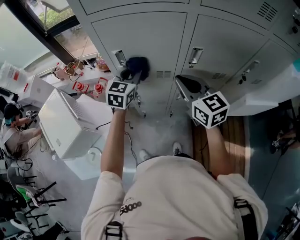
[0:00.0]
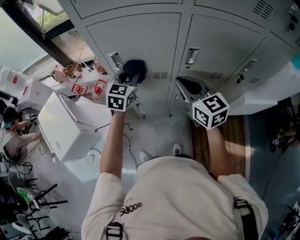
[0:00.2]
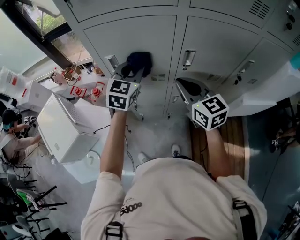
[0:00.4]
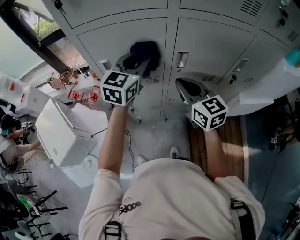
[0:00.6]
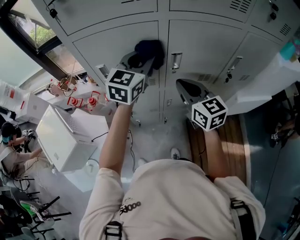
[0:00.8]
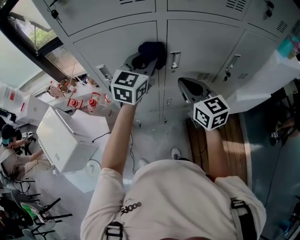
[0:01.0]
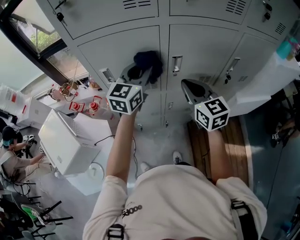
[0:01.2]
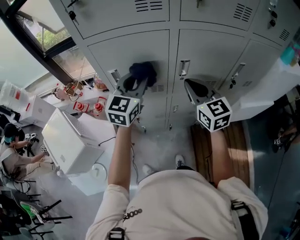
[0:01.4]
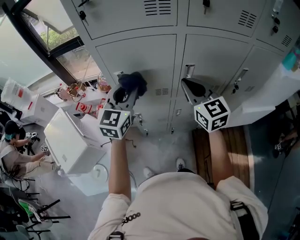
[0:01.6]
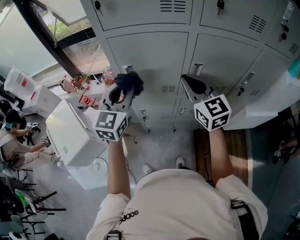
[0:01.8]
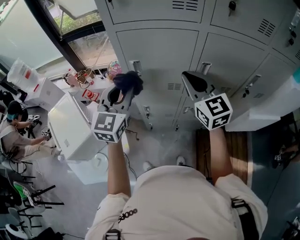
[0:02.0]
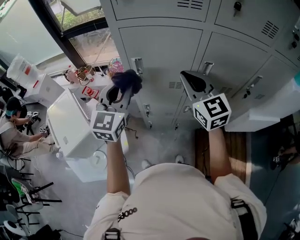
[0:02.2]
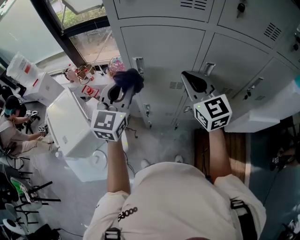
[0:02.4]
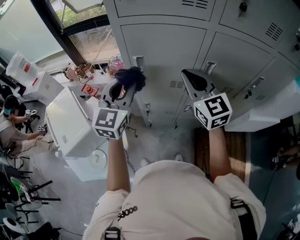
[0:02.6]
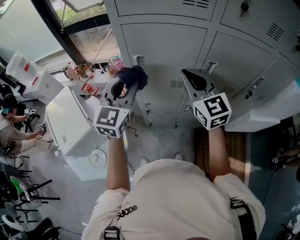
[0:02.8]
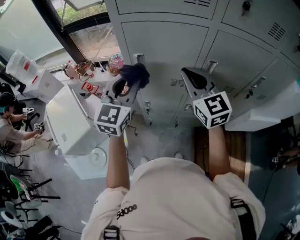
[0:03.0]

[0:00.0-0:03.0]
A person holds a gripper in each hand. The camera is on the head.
0:00.0 to 0:01.6: The right gripper moves upward, approximately 5 cm. Meanwhile the left gripper moves upward and backward, some 15 cm, and moves about 15 cm to the right and comes back.
0:01.6 to 0:03.0: The two grippers go approximately 5 cm to the left.

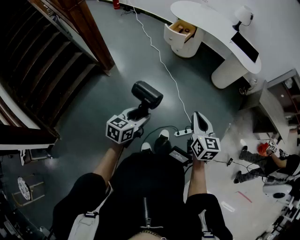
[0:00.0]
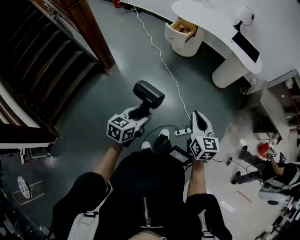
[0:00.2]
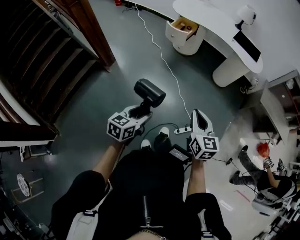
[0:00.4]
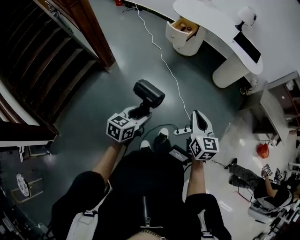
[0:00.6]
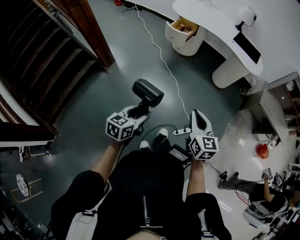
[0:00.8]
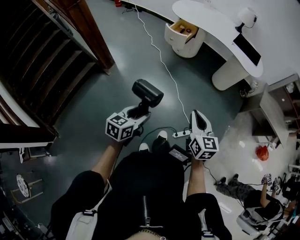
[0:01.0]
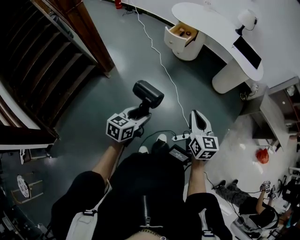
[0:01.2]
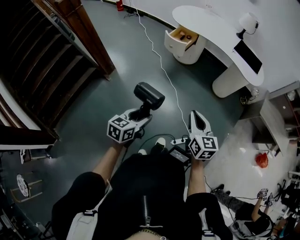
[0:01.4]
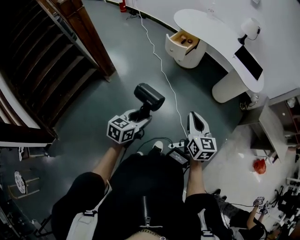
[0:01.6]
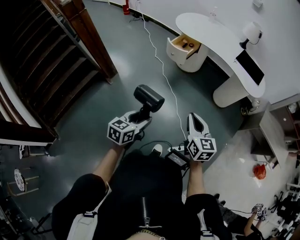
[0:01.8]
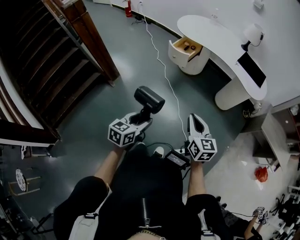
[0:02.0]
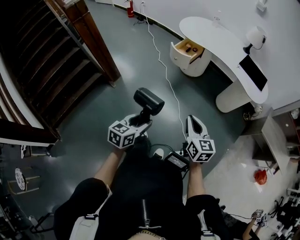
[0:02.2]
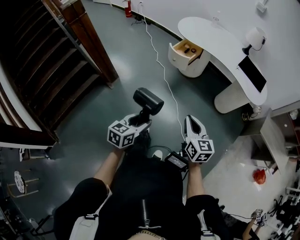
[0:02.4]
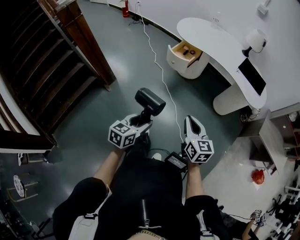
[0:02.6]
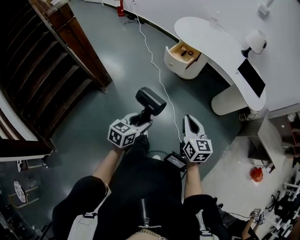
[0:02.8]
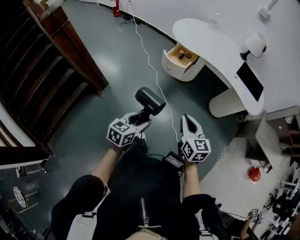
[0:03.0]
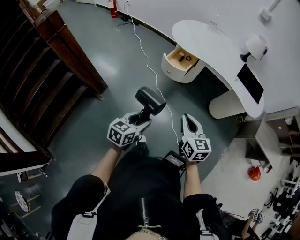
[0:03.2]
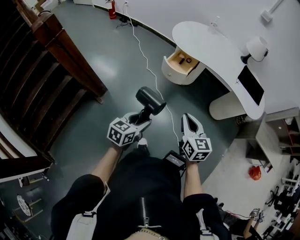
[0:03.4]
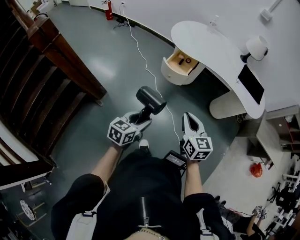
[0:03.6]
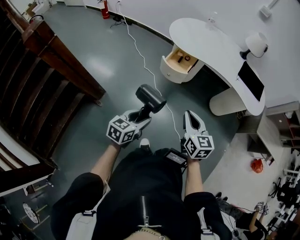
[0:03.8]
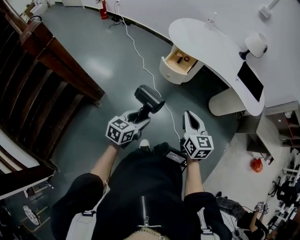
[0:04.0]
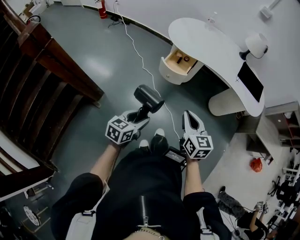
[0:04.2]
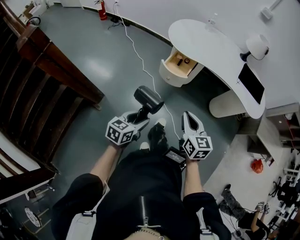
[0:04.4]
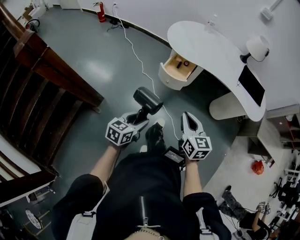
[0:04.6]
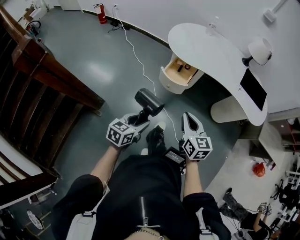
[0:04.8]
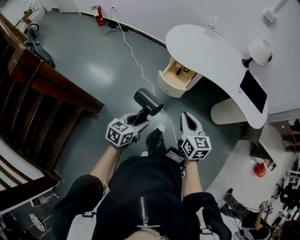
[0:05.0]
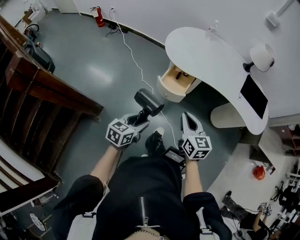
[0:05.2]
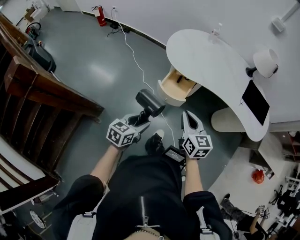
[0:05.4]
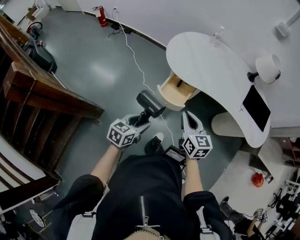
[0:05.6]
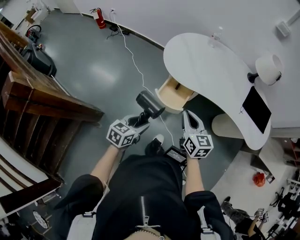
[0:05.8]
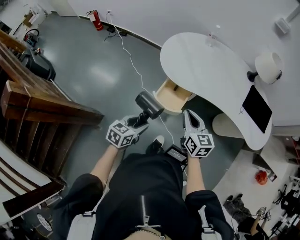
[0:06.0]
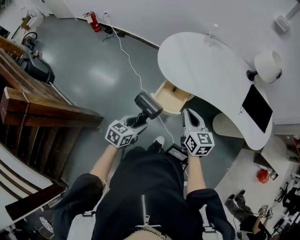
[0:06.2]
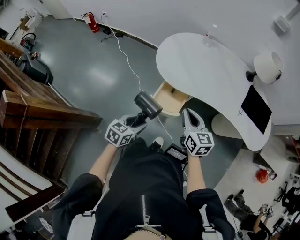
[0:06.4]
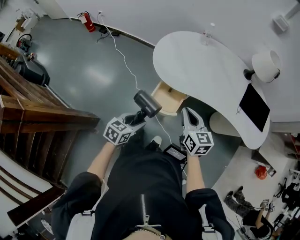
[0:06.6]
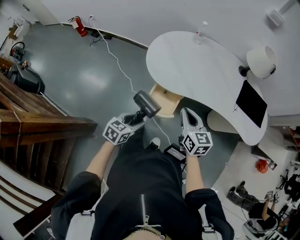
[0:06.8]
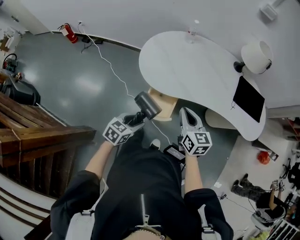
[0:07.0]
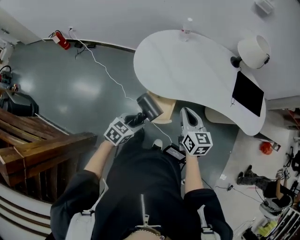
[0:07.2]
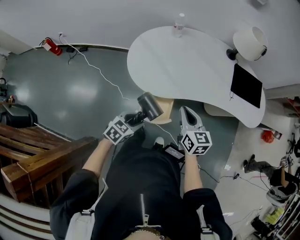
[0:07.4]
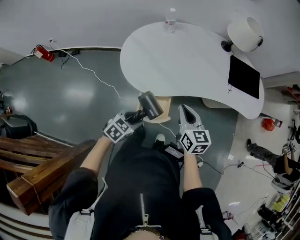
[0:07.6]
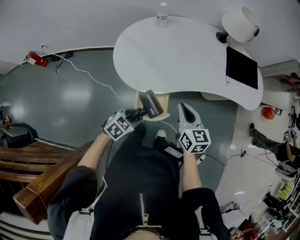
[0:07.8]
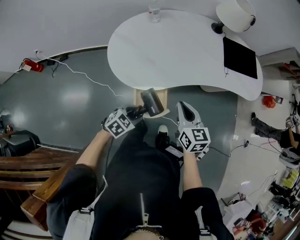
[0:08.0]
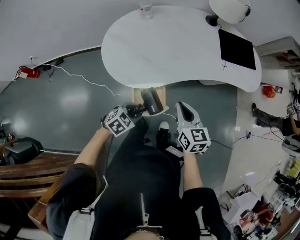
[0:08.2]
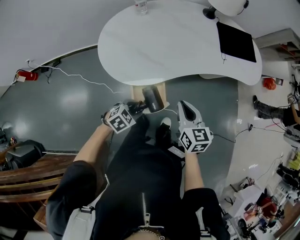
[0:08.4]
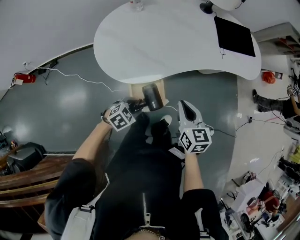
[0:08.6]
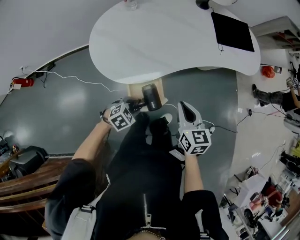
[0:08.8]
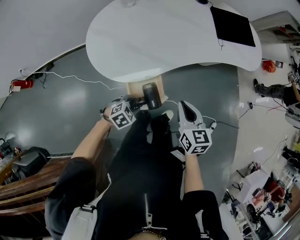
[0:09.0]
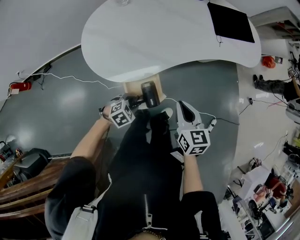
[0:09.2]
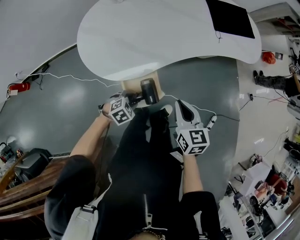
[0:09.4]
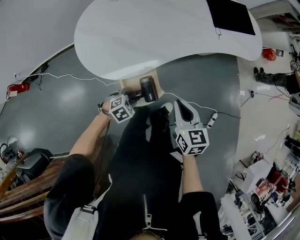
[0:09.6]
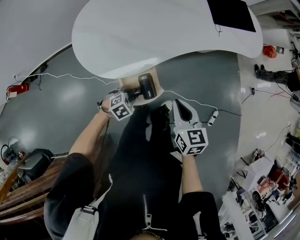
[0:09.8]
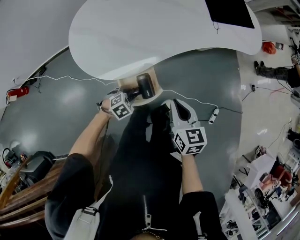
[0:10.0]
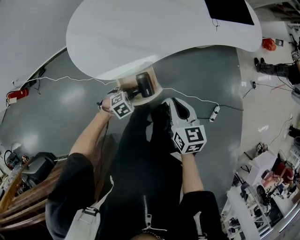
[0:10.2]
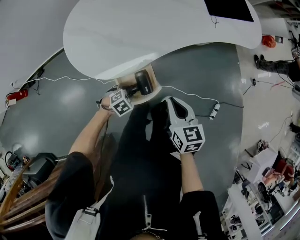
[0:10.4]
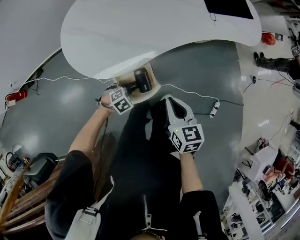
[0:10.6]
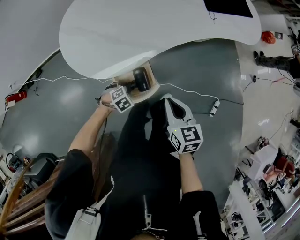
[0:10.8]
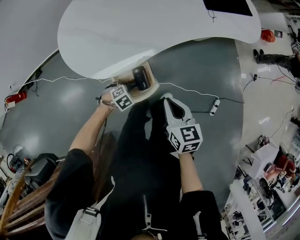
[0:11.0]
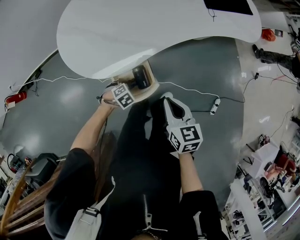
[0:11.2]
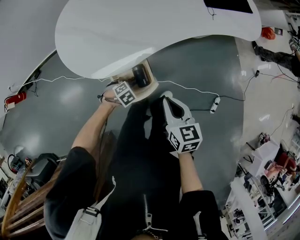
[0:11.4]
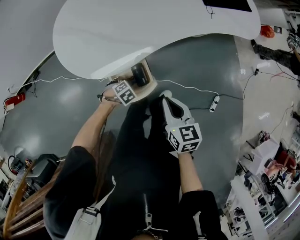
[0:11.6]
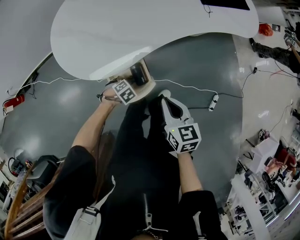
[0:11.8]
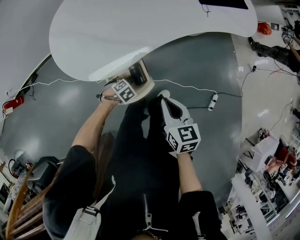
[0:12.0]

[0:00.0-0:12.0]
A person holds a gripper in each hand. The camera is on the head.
0:00.0 to 0:01.6: The two grippers go about 10 cm forward.
0:01.6 to 0:03.0: The left gripper moves forward, about 20 cm, while the right gripper travels forward and to the left by roughly 20 cm.
0:03.0 to 0:04.4: The two grippers go roughly 15 cm forward and to the left.
0:04.4 to 0:06.0: Both grippers move forward, about 30 cm.
0:06.0 to 0:07.6: The right gripper moves roughly 15 cm, and changes its angle by roughly 20 degrees. The left gripper changes place by approximately 20 cm, and changes its angle by some 40 degrees.
0:07.6 to 0:09.0: The right gripper ends up some 10 cm from where it was, and rotates roughly 20 degrees. The left gripper heads downward, covering roughly 10 cm, and rotates about 40 degrees.
0:09.0 to 0:10.4: The left gripper moves downward, about 10 cm, while the right gripper ends up about 5 cm from where it was.
0:10.4 to 0:12.0: The left gripper goes about 5 cm downward.

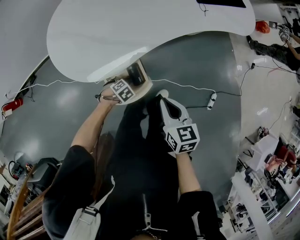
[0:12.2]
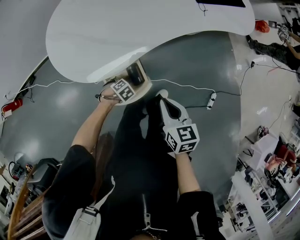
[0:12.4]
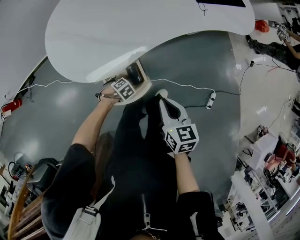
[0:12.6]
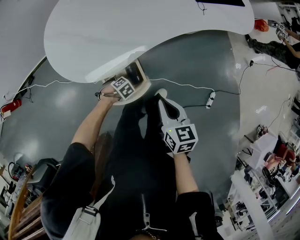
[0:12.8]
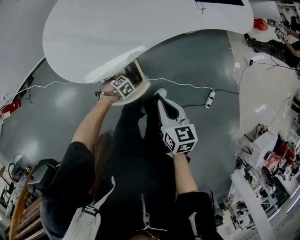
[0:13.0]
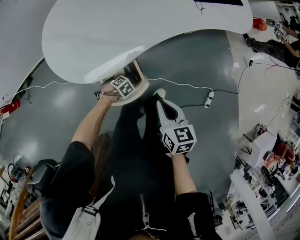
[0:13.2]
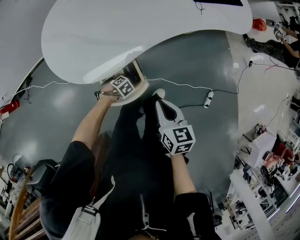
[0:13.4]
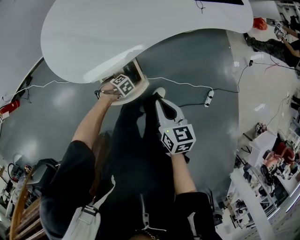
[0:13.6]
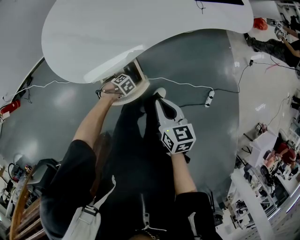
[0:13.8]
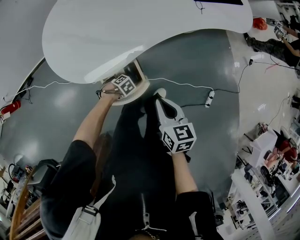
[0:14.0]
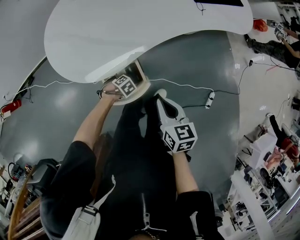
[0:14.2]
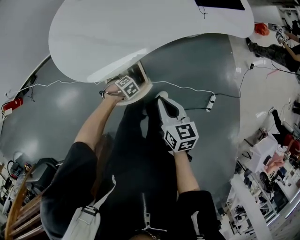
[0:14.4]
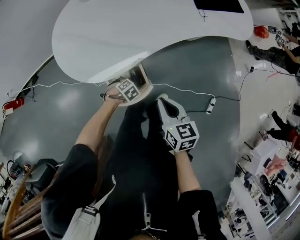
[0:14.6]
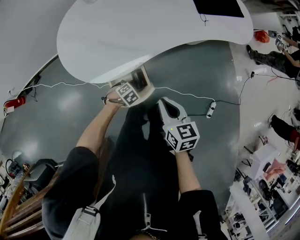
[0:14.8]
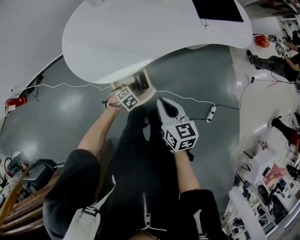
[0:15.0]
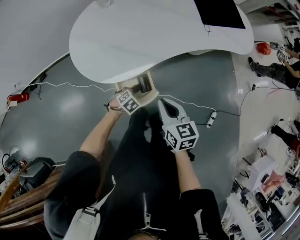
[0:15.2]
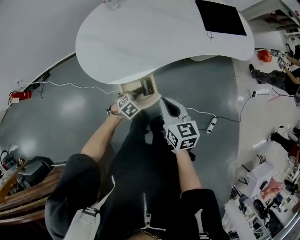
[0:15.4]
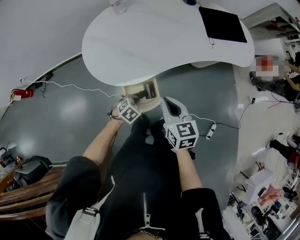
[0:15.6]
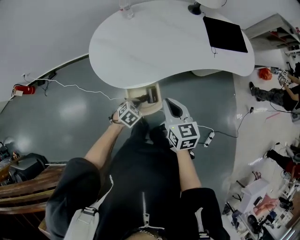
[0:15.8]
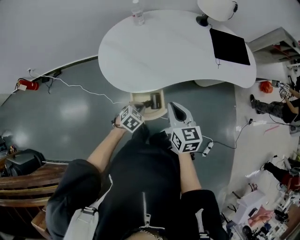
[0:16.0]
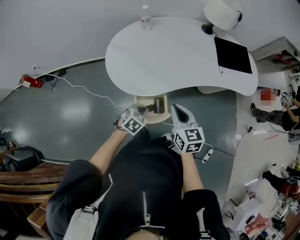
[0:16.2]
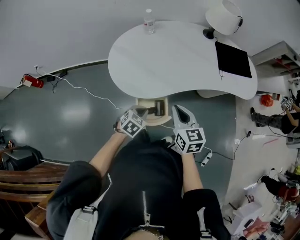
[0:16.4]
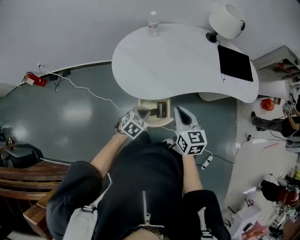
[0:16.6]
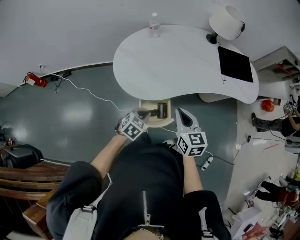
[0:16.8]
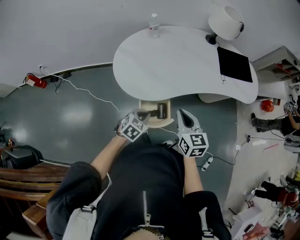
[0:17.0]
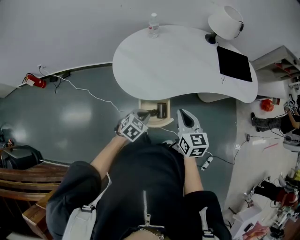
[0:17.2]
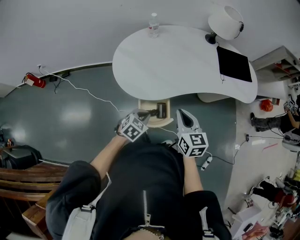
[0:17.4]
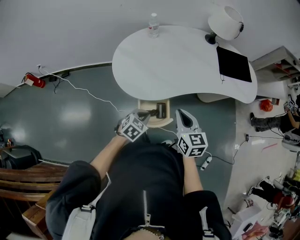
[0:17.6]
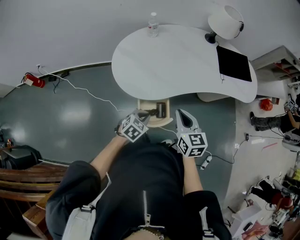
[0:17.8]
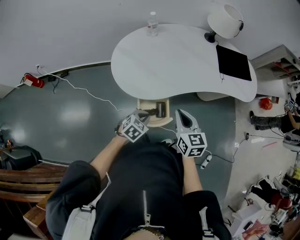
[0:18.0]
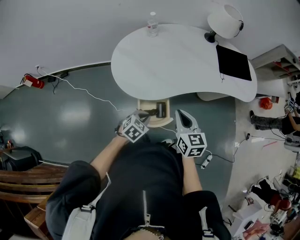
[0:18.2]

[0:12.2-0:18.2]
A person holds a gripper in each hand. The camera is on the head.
0:12.2 to 0:13.8: There are only small adjustments of the grippers.
0:13.8 to 0:15.2: The right gripper travels upward by about 5 cm. The left gripper moves upward, roughly 10 cm, rotates about 20 degrees, and closes up.
0:15.2 to 0:16.6: The right gripper heads upward, covering about 5 cm. The left gripper shifts about 20 cm upward, and turns by some 30 degrees.
0:16.6 to 0:18.2: There are only small adjustments of the grippers.

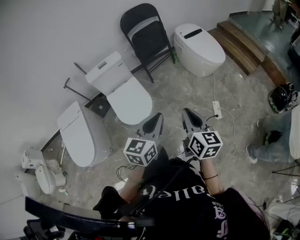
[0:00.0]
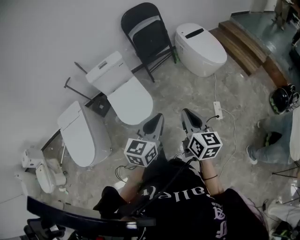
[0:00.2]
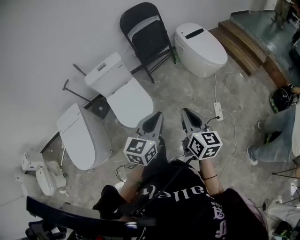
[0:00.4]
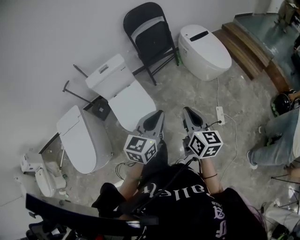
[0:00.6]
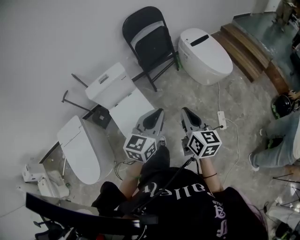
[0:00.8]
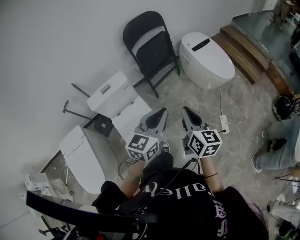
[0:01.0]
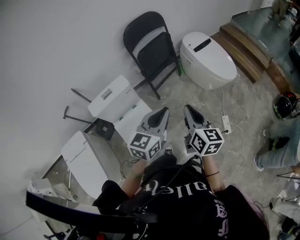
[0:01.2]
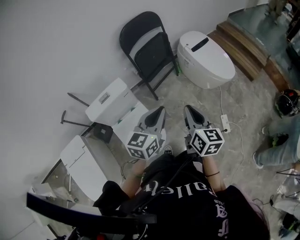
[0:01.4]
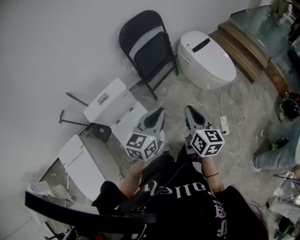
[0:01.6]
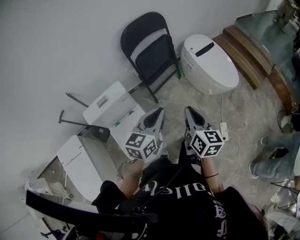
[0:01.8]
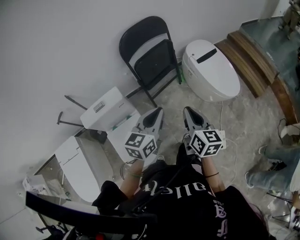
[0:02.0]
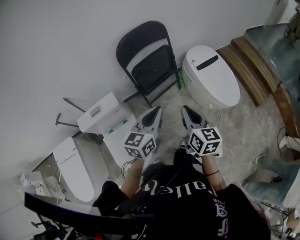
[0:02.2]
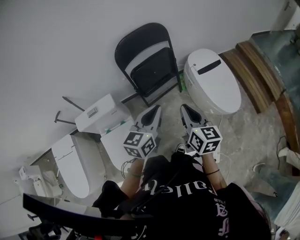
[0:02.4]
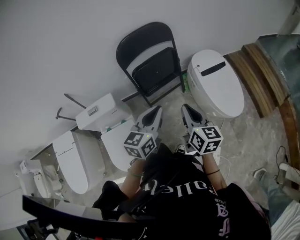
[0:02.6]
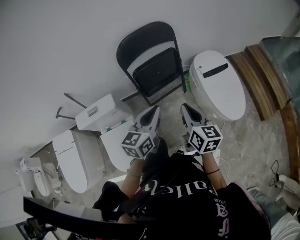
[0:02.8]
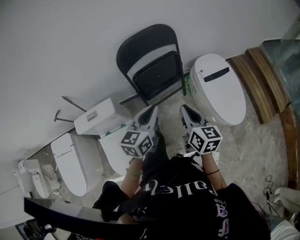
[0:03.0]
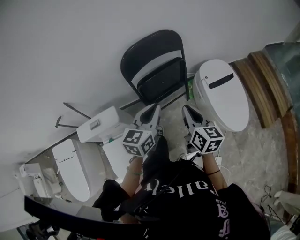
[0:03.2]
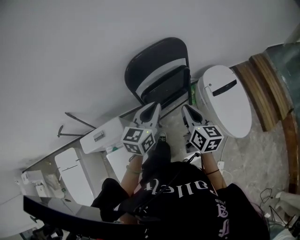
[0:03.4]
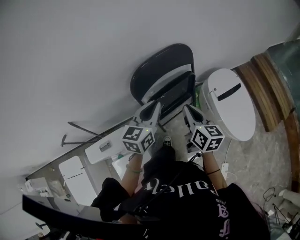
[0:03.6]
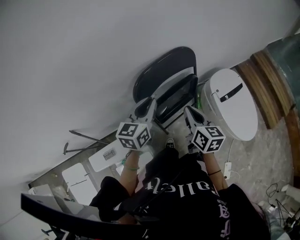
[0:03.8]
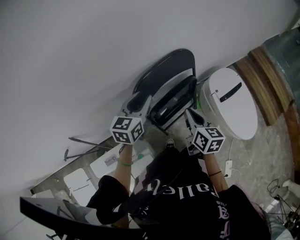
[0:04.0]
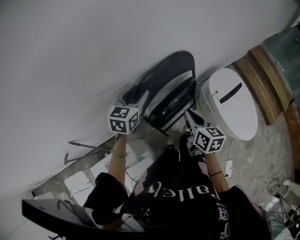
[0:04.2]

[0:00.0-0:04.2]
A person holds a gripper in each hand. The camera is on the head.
0:00.0 to 0:01.4: Both grippers move forward and to the left, about 35 cm.
0:01.4 to 0:02.8: The right gripper goes some 30 cm forward. Meanwhile the left gripper travels forward and to the right by about 30 cm.
0:02.8 to 0:04.2: Both grippers move forward and to the left, roughly 40 cm. The left gripper rotates roughly 20 degrees, and opens up.
